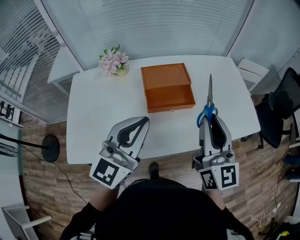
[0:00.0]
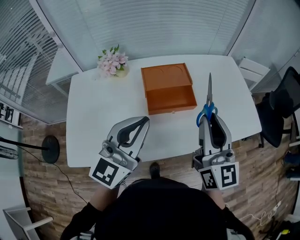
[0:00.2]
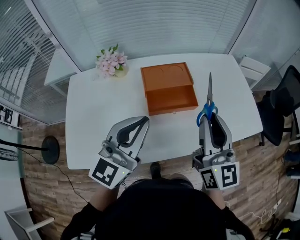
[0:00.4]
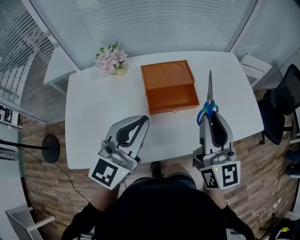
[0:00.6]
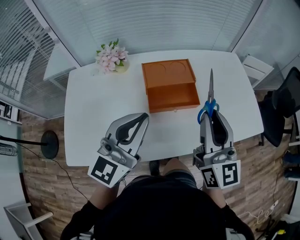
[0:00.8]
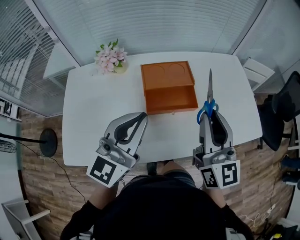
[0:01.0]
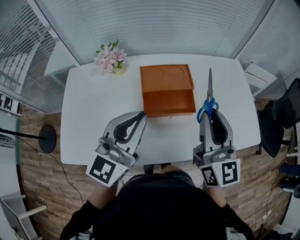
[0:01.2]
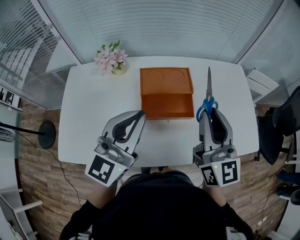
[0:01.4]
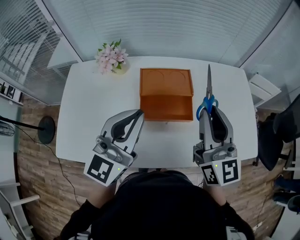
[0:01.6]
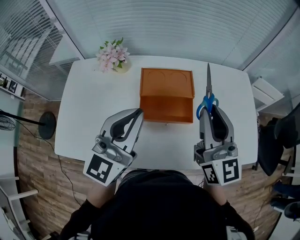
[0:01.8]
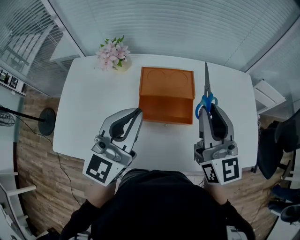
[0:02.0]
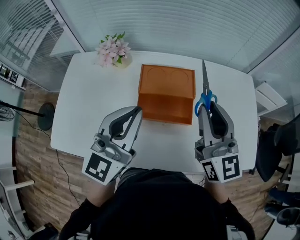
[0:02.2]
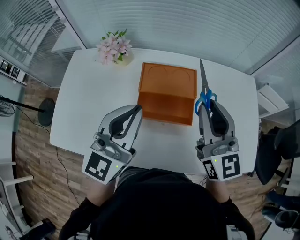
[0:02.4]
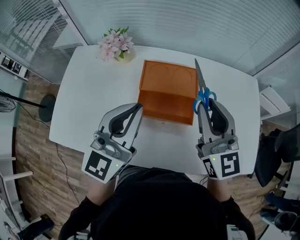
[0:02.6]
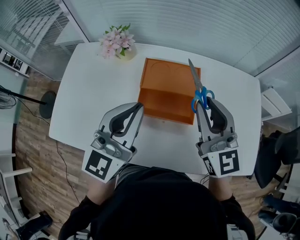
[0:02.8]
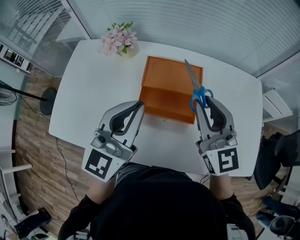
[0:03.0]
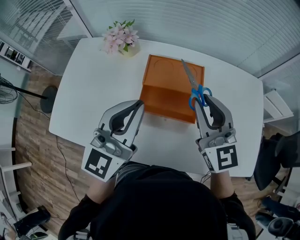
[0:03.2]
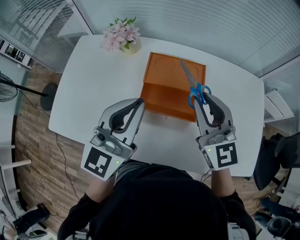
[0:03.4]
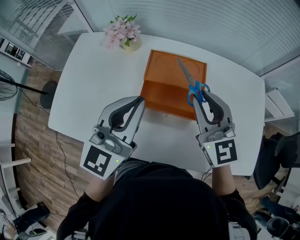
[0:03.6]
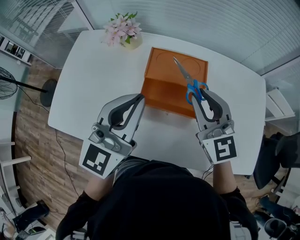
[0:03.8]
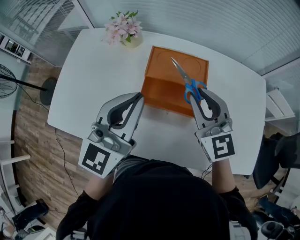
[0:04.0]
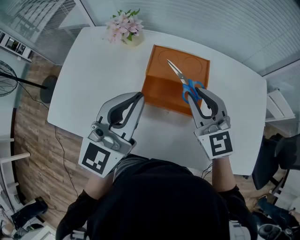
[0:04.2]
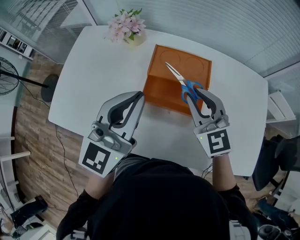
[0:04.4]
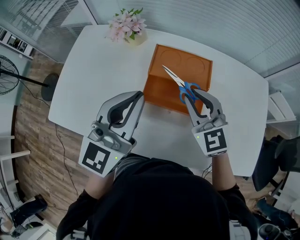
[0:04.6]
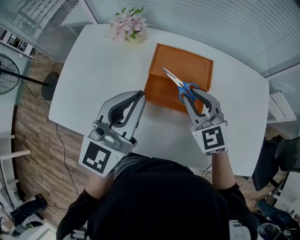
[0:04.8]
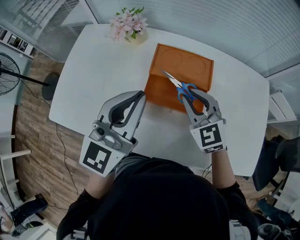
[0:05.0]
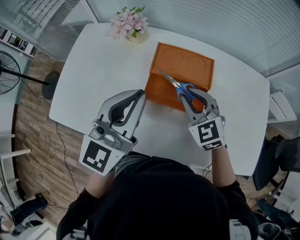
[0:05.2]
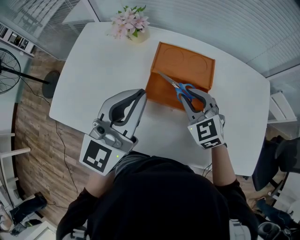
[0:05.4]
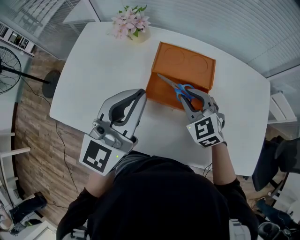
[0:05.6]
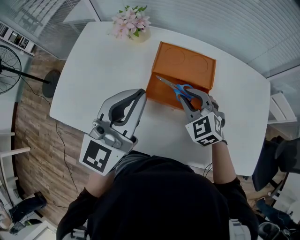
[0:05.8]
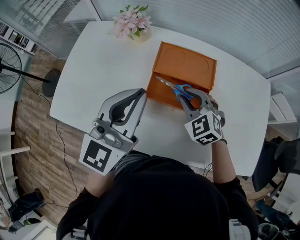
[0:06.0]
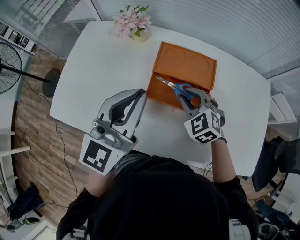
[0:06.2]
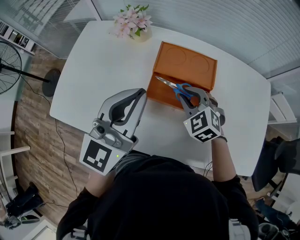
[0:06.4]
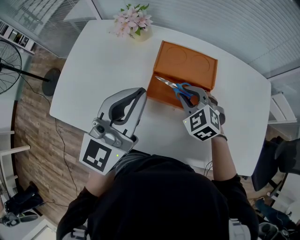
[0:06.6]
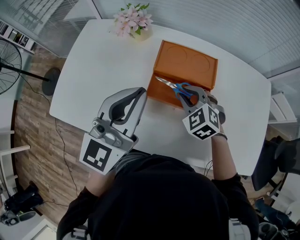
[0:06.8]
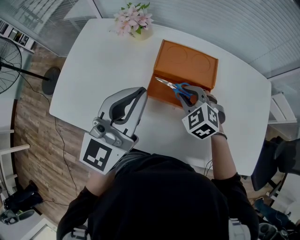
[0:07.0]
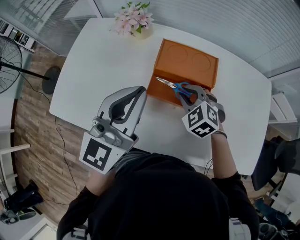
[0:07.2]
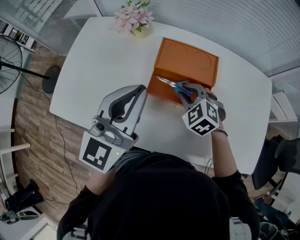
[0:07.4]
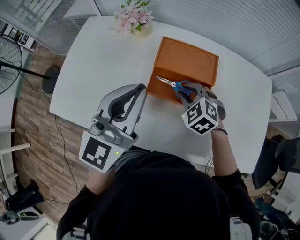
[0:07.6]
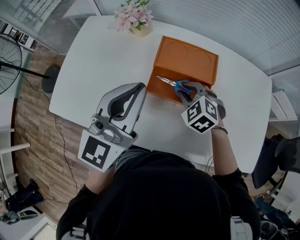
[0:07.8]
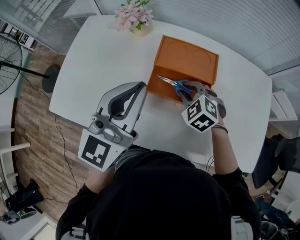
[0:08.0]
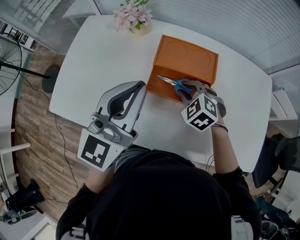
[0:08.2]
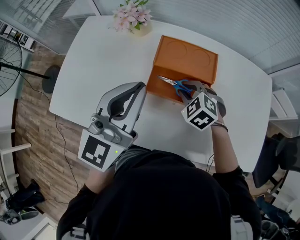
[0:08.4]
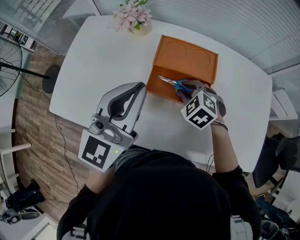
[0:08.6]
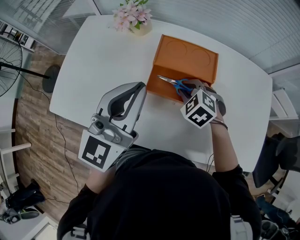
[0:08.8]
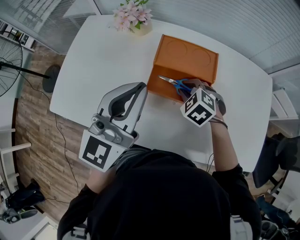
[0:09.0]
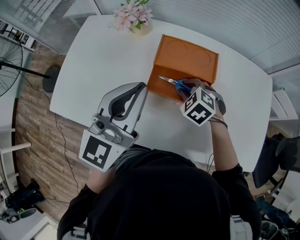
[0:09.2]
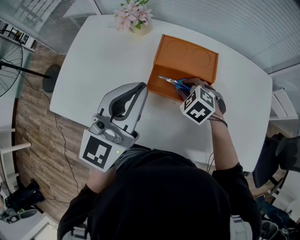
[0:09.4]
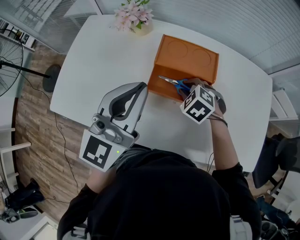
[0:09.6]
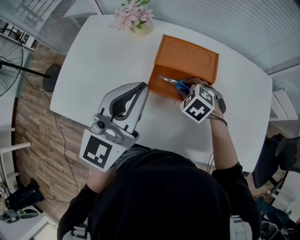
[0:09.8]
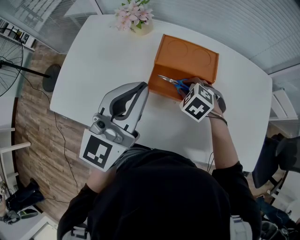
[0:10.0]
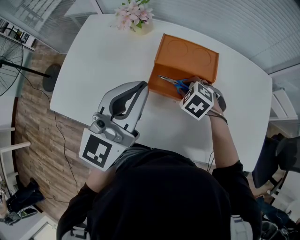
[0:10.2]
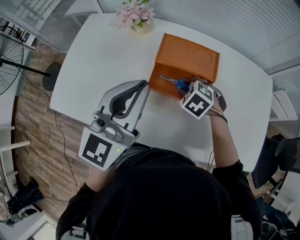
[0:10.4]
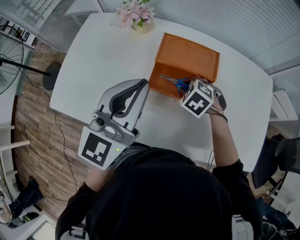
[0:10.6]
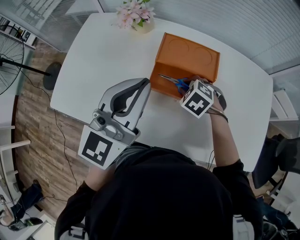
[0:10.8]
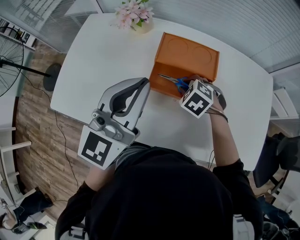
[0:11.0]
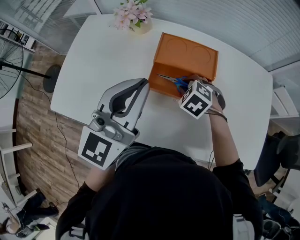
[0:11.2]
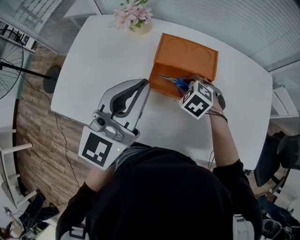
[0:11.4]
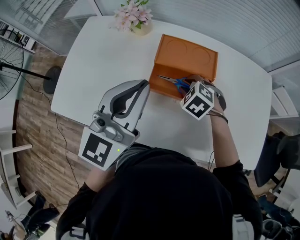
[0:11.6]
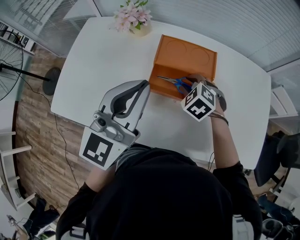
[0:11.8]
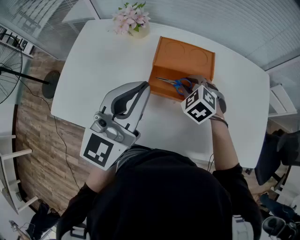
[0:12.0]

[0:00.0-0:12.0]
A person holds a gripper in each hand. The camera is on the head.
0:00.0 to 0:01.6: Both grippers travel together forward, about 10 cm.
0:01.6 to 0:03.0: The right gripper heads forward and downward, covering about 10 cm, and turns by roughly 20 degrees.
0:03.0 to 0:04.4: The right gripper travels downward by approximately 10 cm.
0:04.4 to 0:06.0: The right gripper shifts about 10 cm downward, and swivels some 30 degrees.
0:06.0 to 0:07.6: The grippers stay close to where they were, moving slightly.
0:07.6 to 0:12.0: The grippers make only small movements.

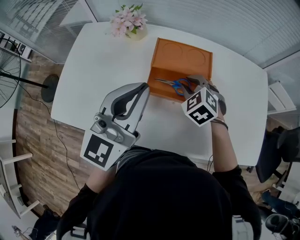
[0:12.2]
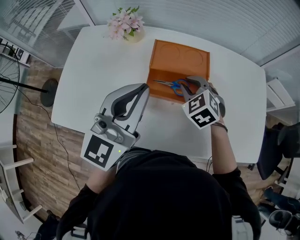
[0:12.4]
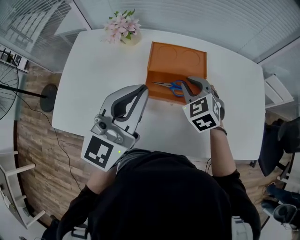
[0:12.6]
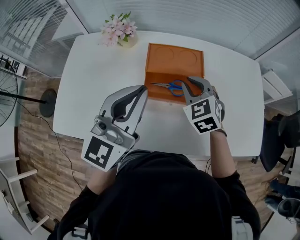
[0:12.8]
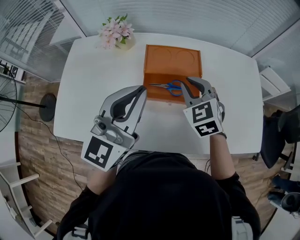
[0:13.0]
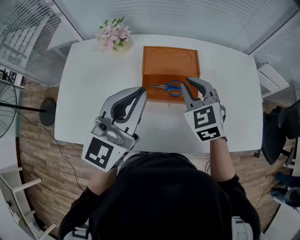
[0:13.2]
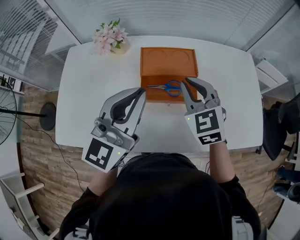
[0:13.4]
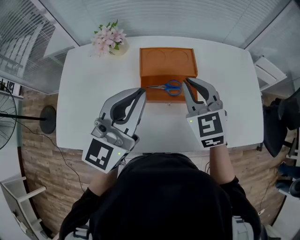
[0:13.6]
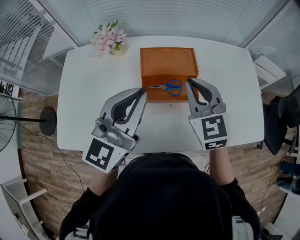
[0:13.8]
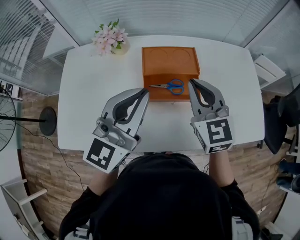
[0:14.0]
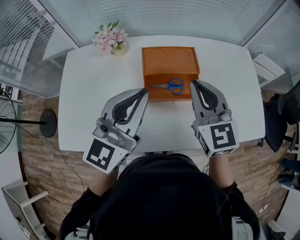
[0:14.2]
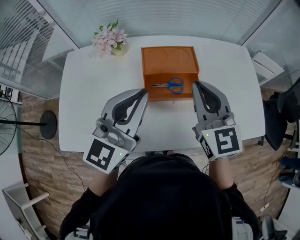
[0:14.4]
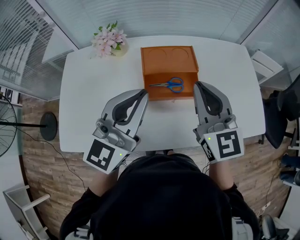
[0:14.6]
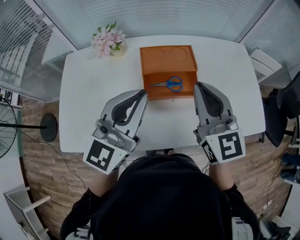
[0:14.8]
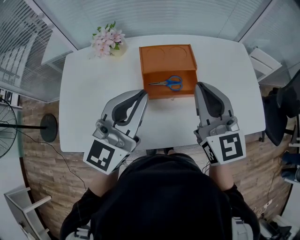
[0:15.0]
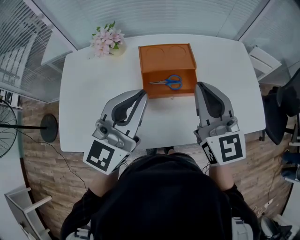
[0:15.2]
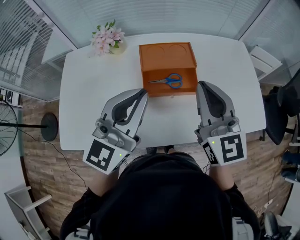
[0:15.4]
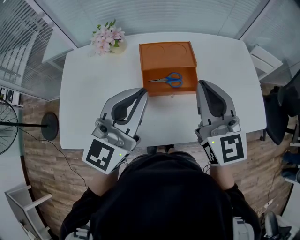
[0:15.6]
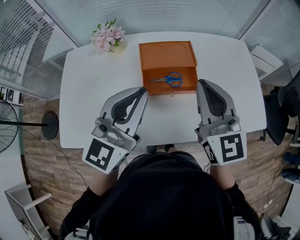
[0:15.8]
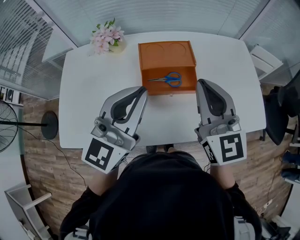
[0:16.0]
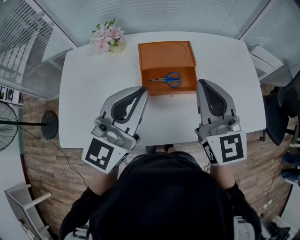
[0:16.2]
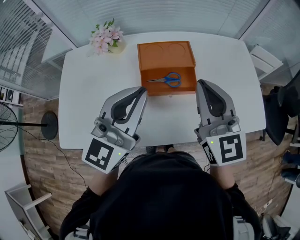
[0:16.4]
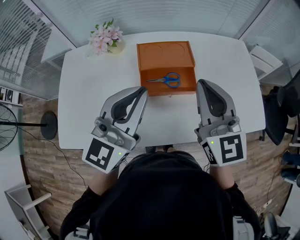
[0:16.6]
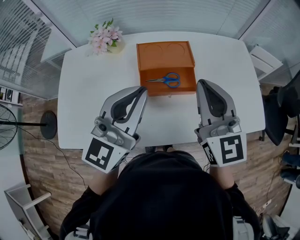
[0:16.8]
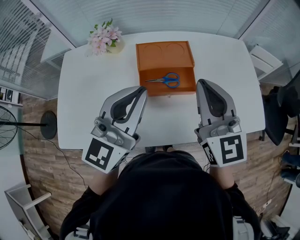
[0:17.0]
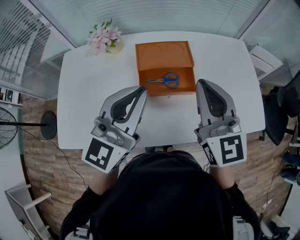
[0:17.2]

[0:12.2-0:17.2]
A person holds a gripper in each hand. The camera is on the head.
0:12.2 to 0:13.8: The right gripper travels upward by approximately 15 cm, tilts its fingers roughly 30 degrees upward, and closes.
0:13.8 to 0:15.6: The right gripper moves upward and backward, approximately 10 cm, and turns by roughly 20 degrees.
0:15.6 to 0:17.2: Both grippers stay about where they are.

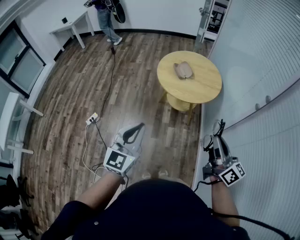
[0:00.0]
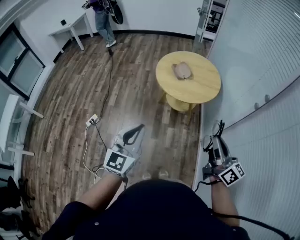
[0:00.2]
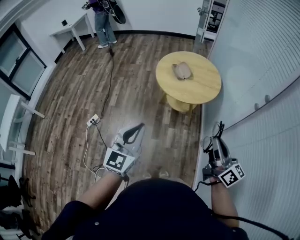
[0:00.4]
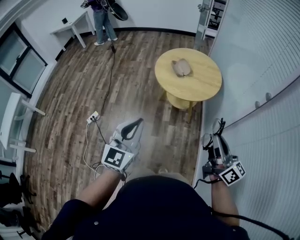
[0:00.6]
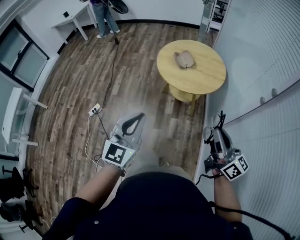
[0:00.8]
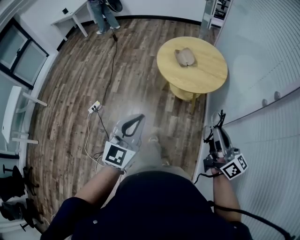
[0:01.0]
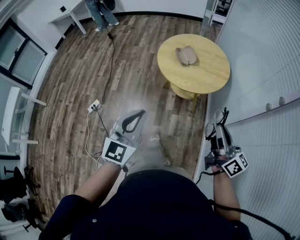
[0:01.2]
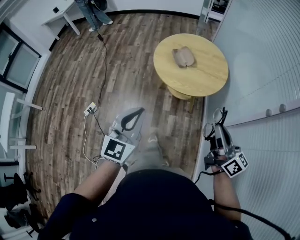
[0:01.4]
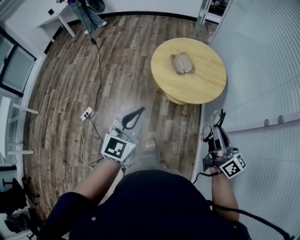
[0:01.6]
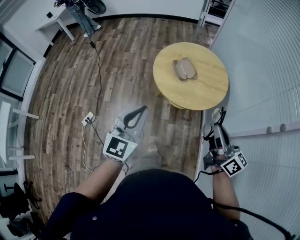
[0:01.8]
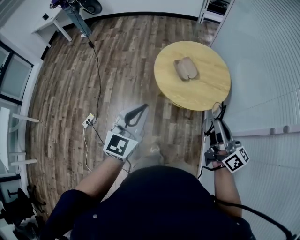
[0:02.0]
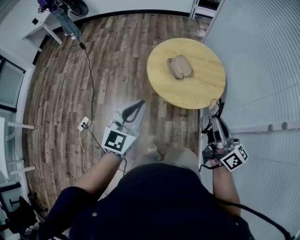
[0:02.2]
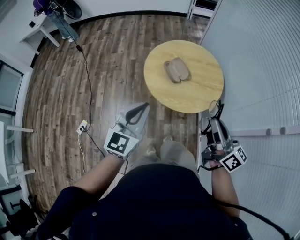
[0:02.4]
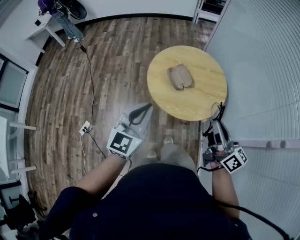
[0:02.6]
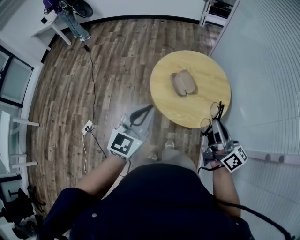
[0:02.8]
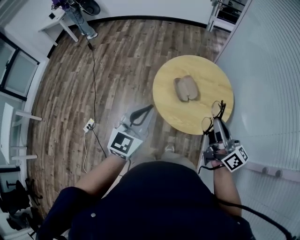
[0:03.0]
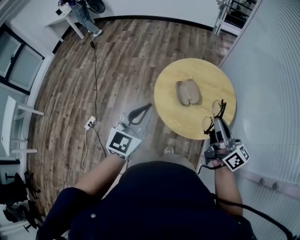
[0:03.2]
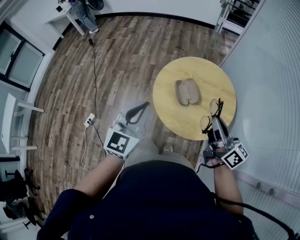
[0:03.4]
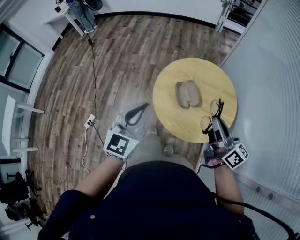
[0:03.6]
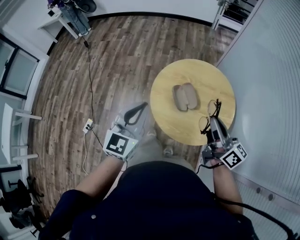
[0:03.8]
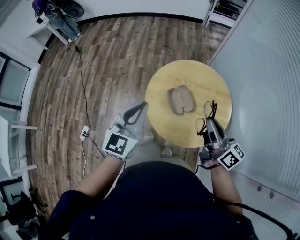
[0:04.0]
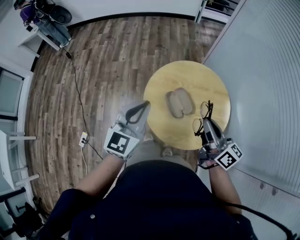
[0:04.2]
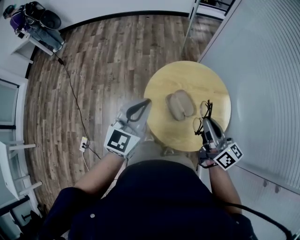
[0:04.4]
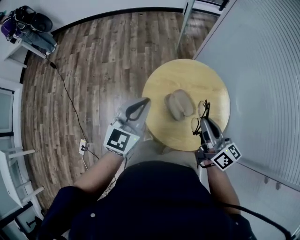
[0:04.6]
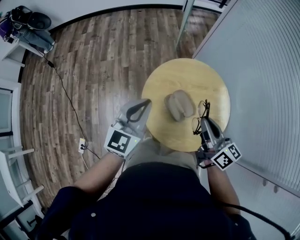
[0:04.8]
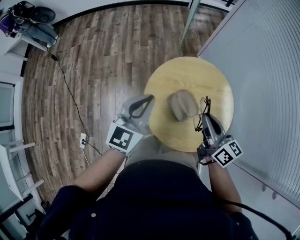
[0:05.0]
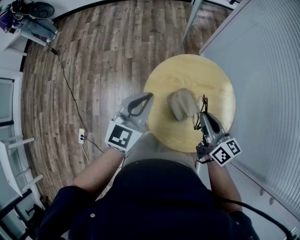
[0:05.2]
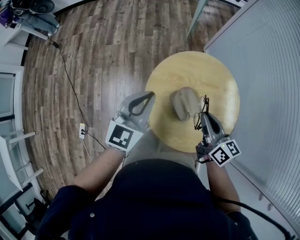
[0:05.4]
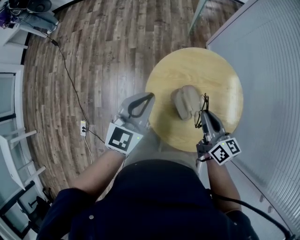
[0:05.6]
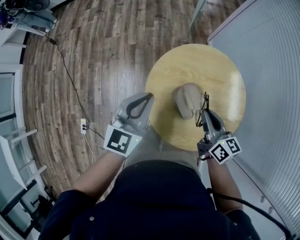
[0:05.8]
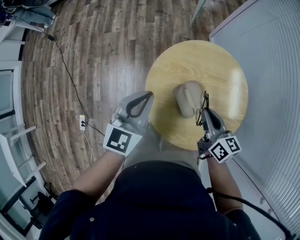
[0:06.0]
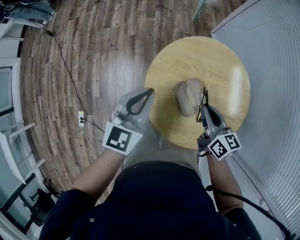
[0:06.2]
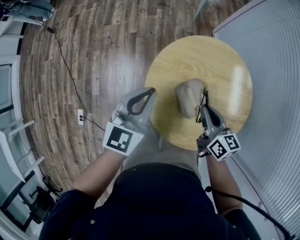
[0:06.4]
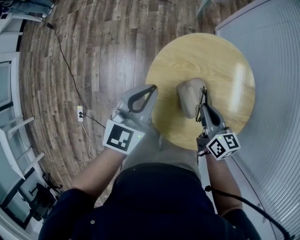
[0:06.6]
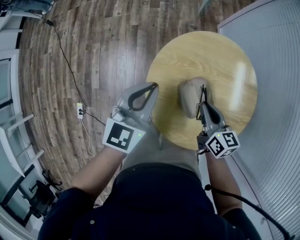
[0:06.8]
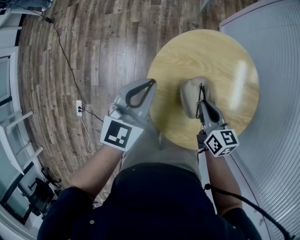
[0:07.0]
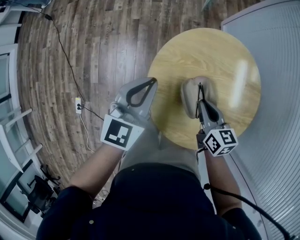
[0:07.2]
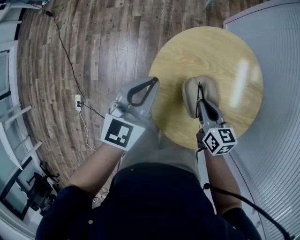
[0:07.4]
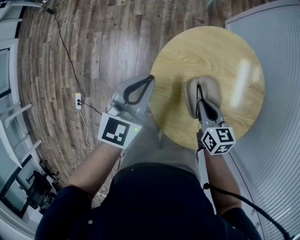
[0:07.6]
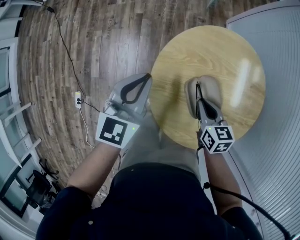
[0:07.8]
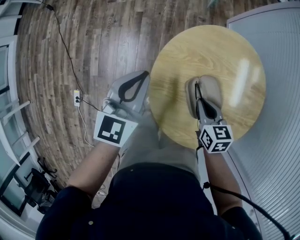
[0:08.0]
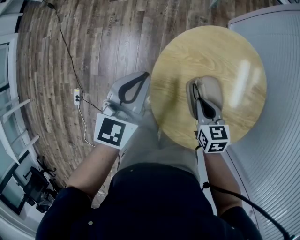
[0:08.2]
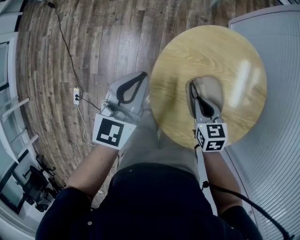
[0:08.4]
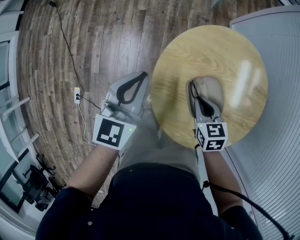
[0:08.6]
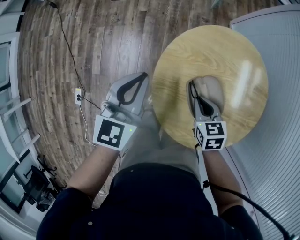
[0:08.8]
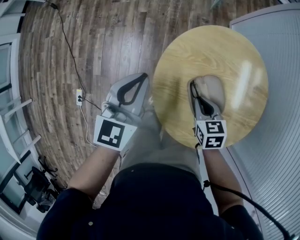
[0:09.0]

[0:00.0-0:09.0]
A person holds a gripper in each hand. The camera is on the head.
0:00.0 to 0:01.6: Both grippers move forward, about 20 cm.
0:01.6 to 0:03.0: The two grippers go roughly 25 cm forward.
0:03.0 to 0:04.4: The grippers both shift forward by some 20 cm.
0:04.4 to 0:06.0: Both grippers move downward and forward, approximately 15 cm. The right gripper swivels some 20 degrees.
0:06.0 to 0:07.6: The right gripper shifts approximately 15 cm downward, and turns by roughly 20 degrees, while the left gripper heads downward, covering roughly 10 cm.
0:07.6 to 0:09.0: The grippers stay close to where they were, moving slightly.
